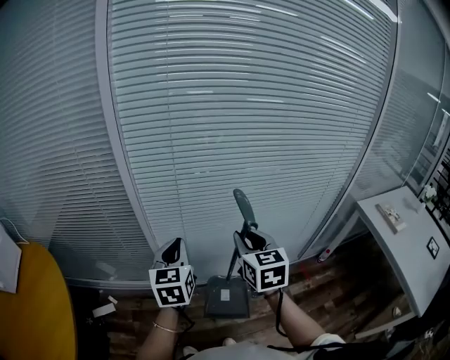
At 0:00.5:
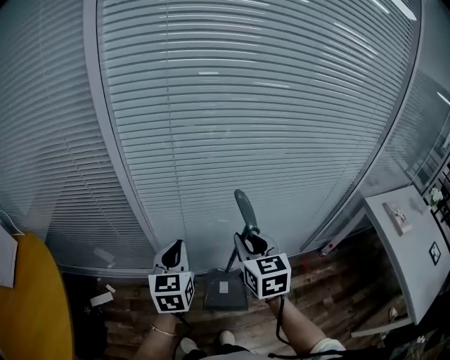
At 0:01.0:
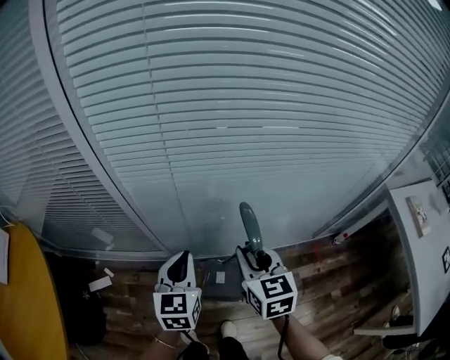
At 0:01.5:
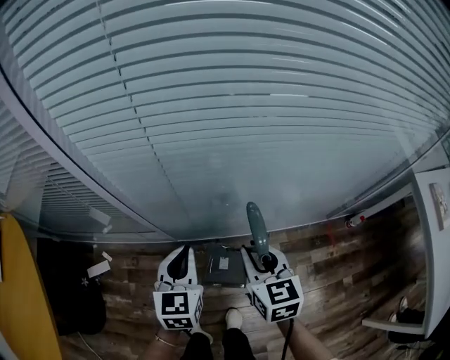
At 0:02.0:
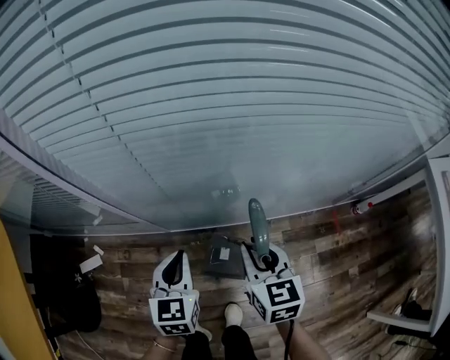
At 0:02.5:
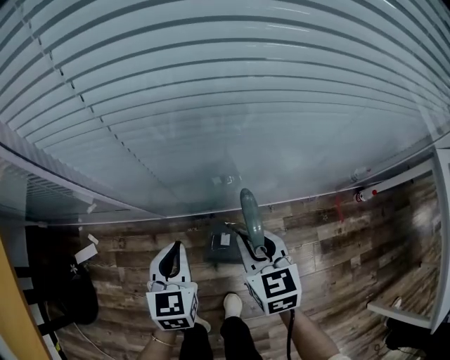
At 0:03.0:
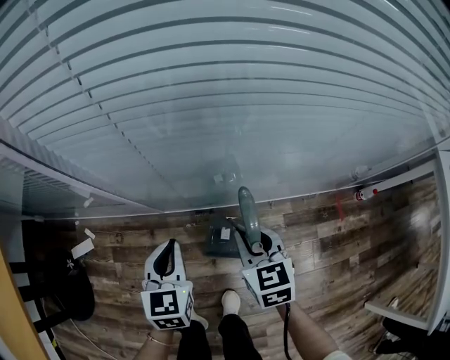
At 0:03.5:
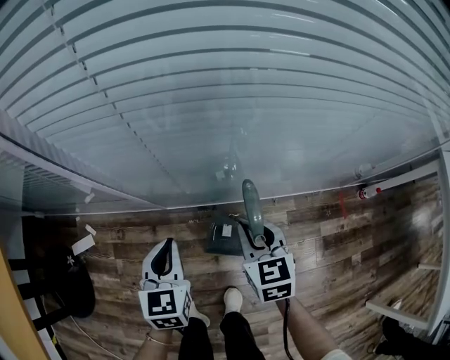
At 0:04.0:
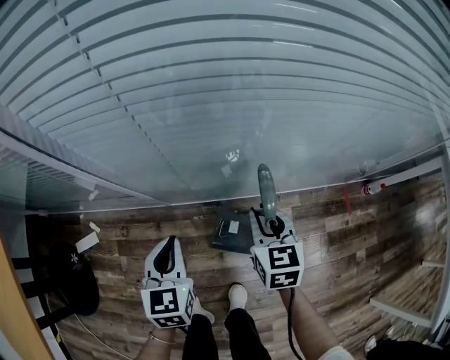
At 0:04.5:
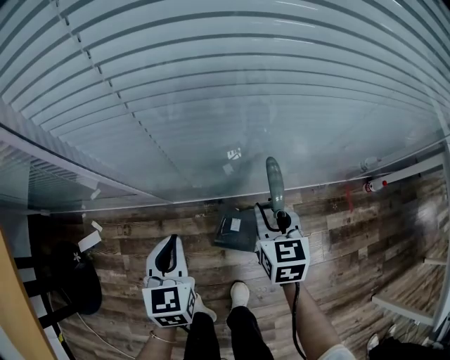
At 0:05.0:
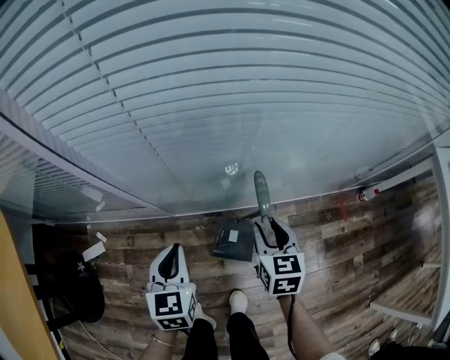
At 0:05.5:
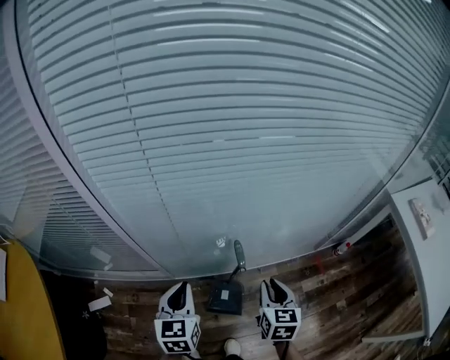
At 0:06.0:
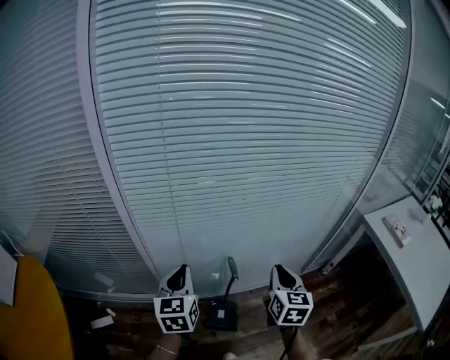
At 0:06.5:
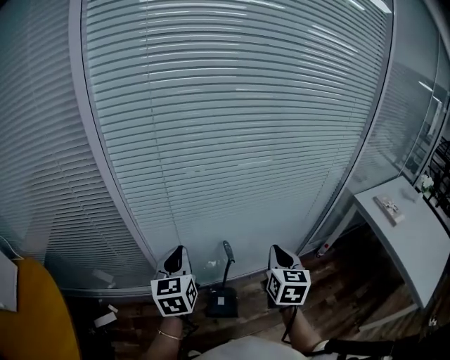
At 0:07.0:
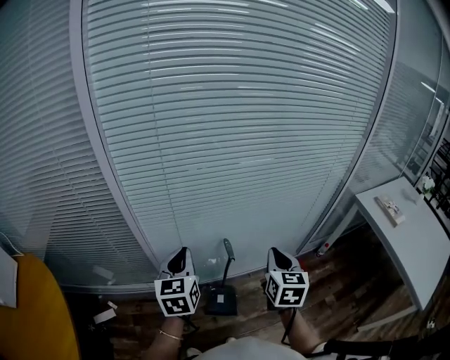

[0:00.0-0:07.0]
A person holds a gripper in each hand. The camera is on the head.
0:00.0 to 0:02.0: Both grippers move downward, roughly 35 cm.
0:02.0 to 0:03.5: The left gripper travels downward by roughly 5 cm, while the right gripper heads downward, covering some 10 cm.
0:03.5 to 0:05.0: The right gripper travels to the right by approximately 5 cm.
0:05.0 to 0:07.0: The two grippers go about 30 cm upward. The left gripper turns by some 20 degrees, while the right gripper swivels some 20 degrees, and closes.

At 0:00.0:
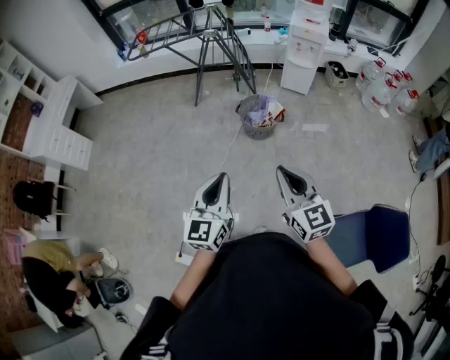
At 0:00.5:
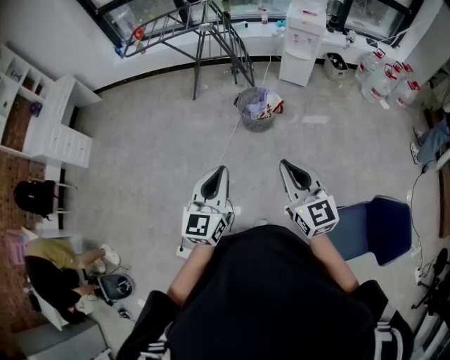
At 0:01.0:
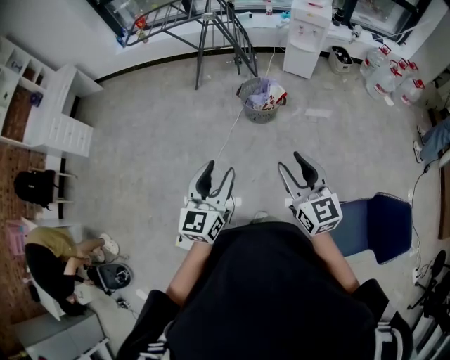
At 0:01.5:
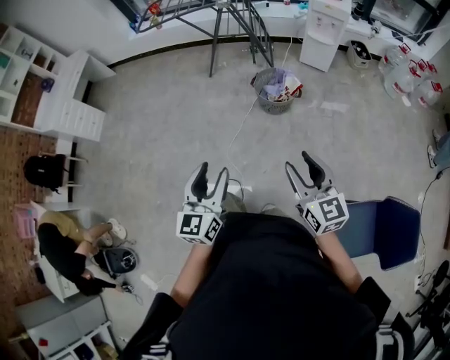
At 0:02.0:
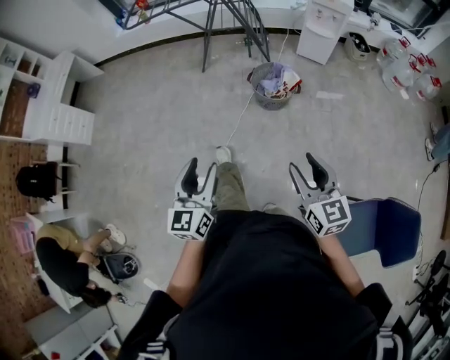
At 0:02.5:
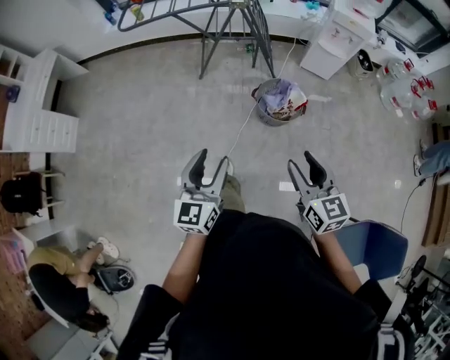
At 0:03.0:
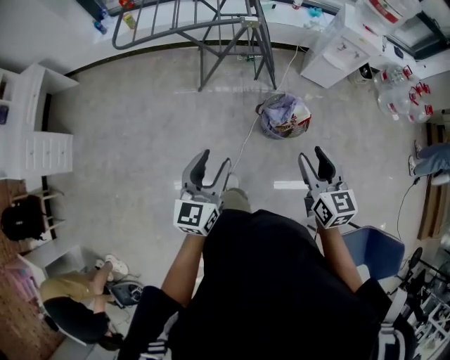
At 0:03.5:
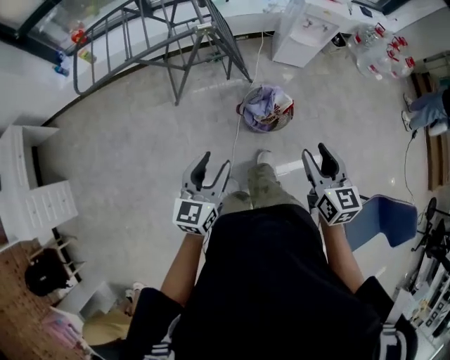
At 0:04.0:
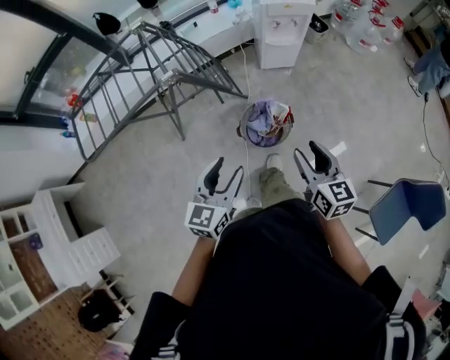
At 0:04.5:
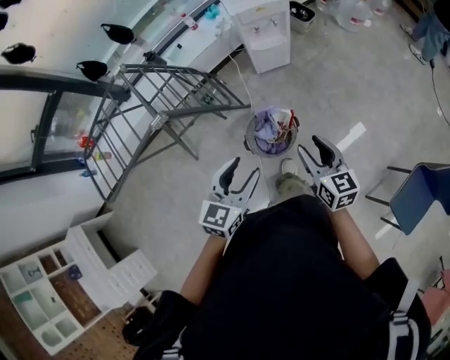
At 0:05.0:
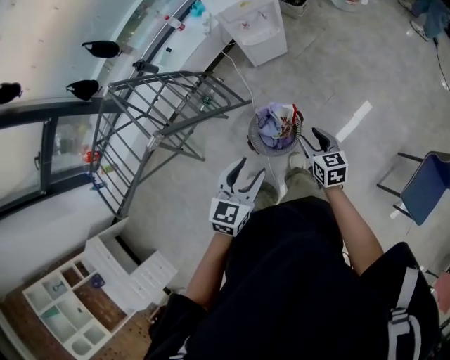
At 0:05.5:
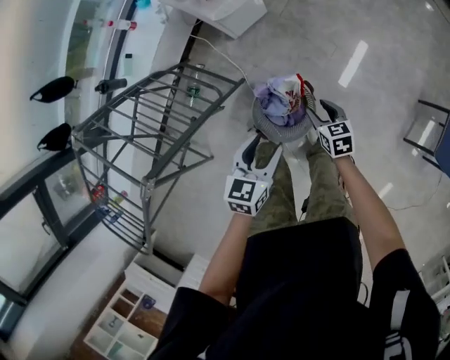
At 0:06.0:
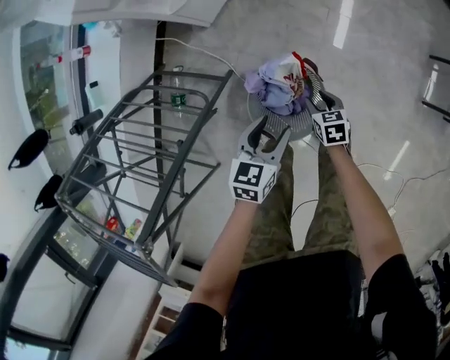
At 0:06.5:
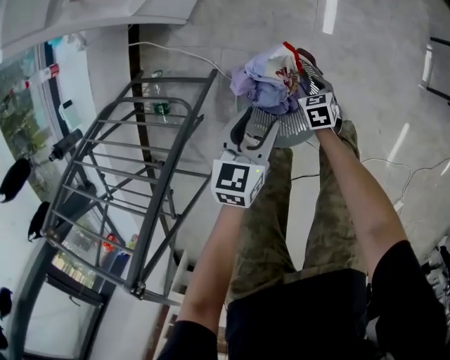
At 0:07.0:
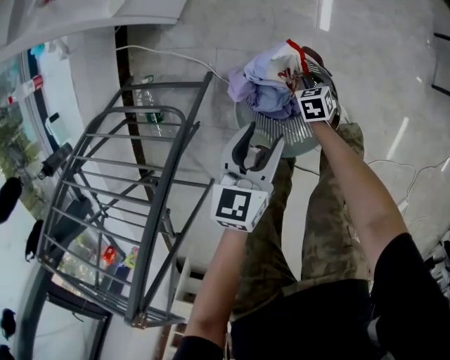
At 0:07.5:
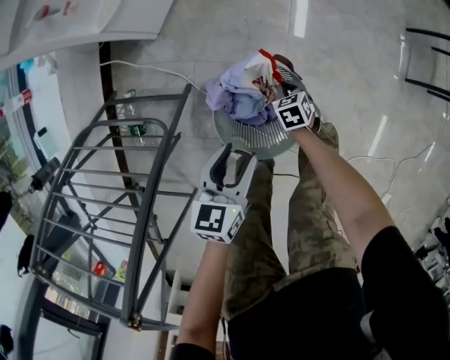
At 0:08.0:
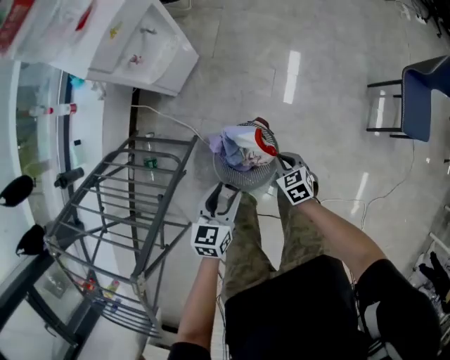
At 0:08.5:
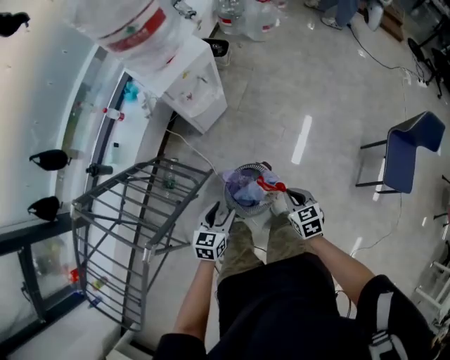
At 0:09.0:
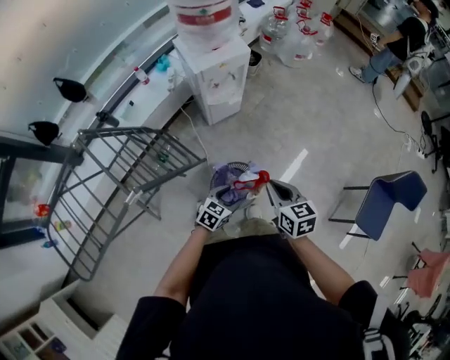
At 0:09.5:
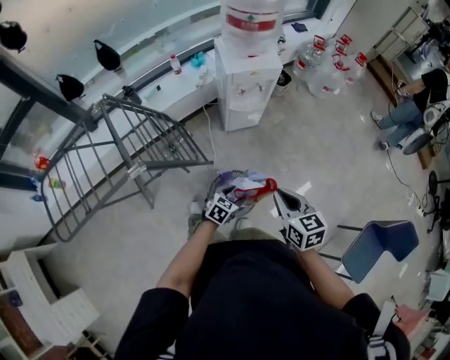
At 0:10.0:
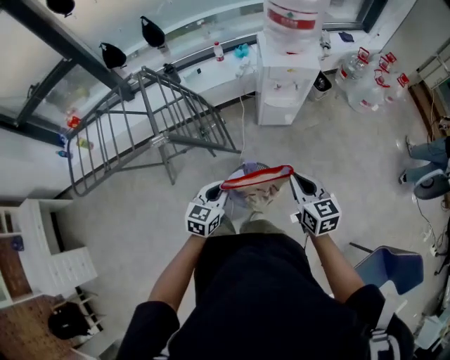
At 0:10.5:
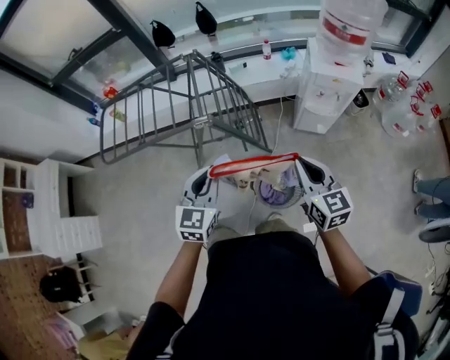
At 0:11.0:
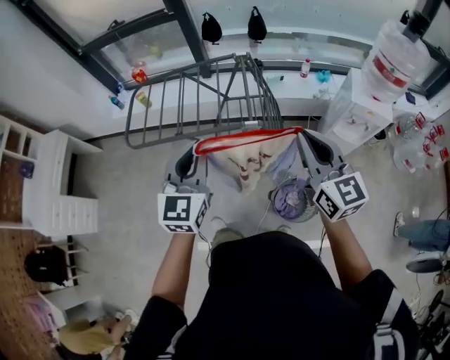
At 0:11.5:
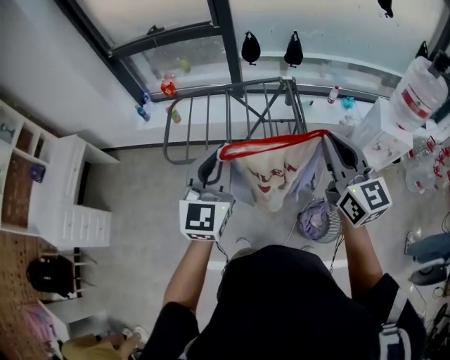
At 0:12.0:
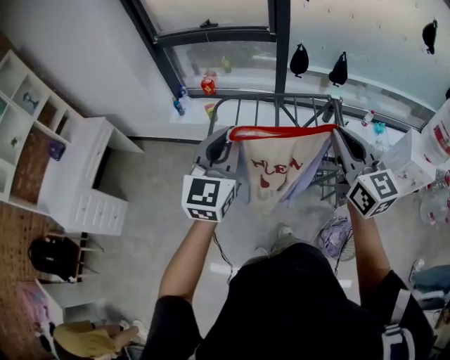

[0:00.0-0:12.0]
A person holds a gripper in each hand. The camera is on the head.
0:00.0 to 0:02.0: The left gripper shifts about 10 cm to the left, downward and forward, and opens; the right gripper goes about 10 cm downward, and opens up.
0:02.0 to 0:04.0: The two grippers travel together, about 50 cm. The left gripper changes its angle by approximately 40 degrees, while the right gripper changes its angle by about 30 degrees.
0:04.0 to 0:06.0: Both grippers move downward, about 50 cm. The left gripper rotates roughly 50 degrees, while the right gripper angles its fingers downward, by about 40 degrees.
0:06.0 to 0:08.0: Both grippers move upward, some 10 cm. The right gripper closes its fingers.
0:08.0 to 0:10.0: The right gripper heads upward, covering about 50 cm, and tips its fingers upward by approximately 30 degrees, while the left gripper goes some 25 cm upward, swivels about 50 degrees, and closes its fingers.
0:10.0 to 0:12.0: The pair of grippers is taken approximately 70 cm. The left gripper rotates roughly 50 degrees. The right gripper rotates roughly 40 degrees.

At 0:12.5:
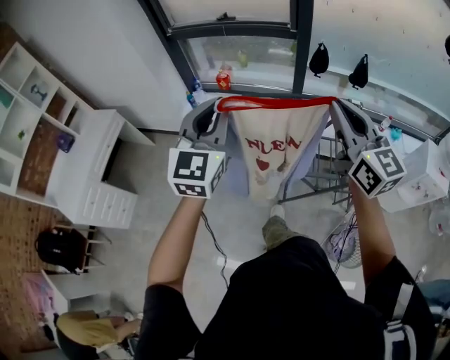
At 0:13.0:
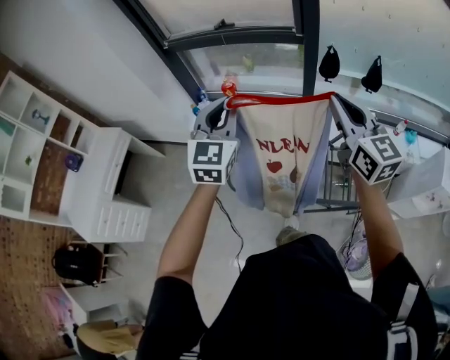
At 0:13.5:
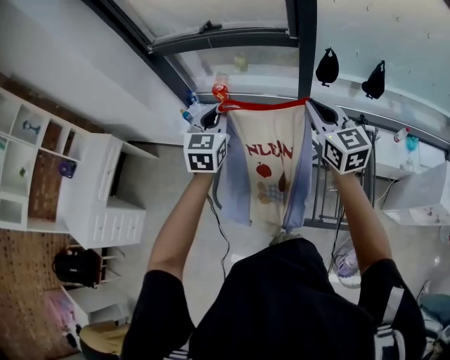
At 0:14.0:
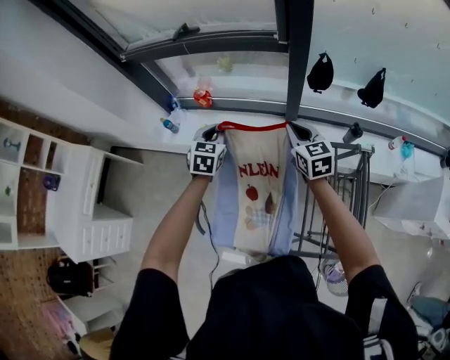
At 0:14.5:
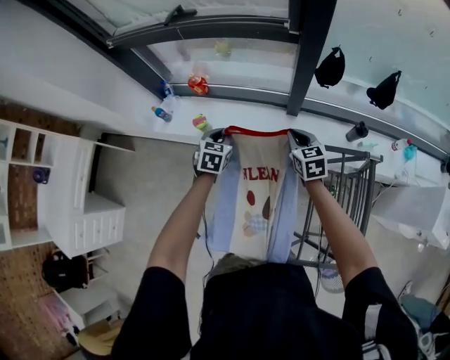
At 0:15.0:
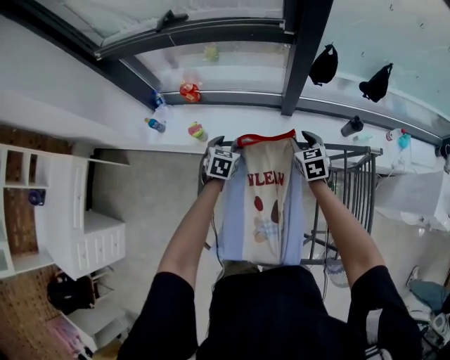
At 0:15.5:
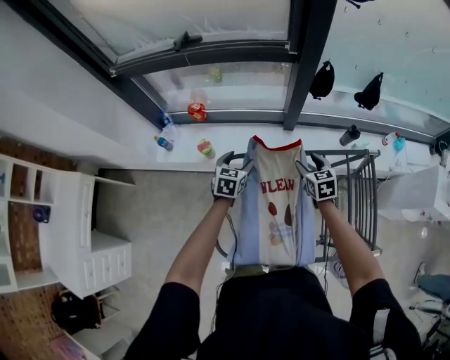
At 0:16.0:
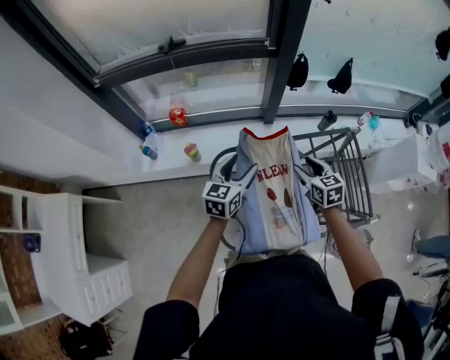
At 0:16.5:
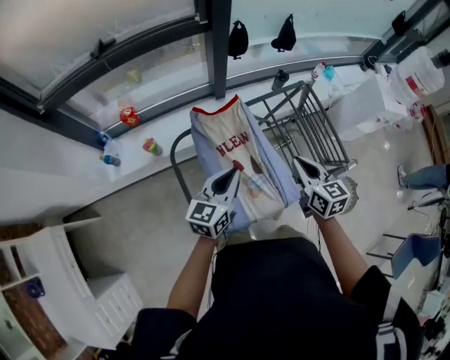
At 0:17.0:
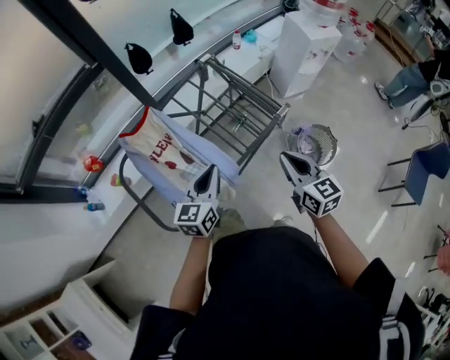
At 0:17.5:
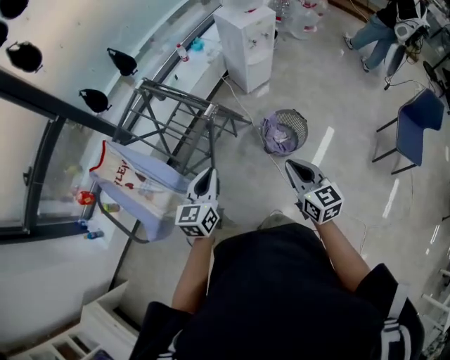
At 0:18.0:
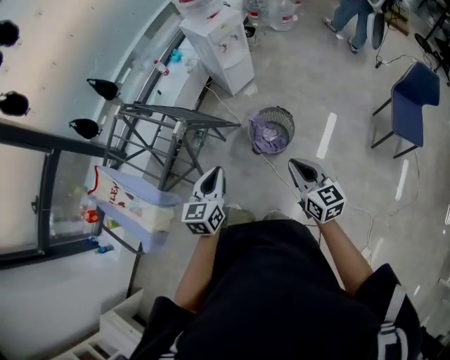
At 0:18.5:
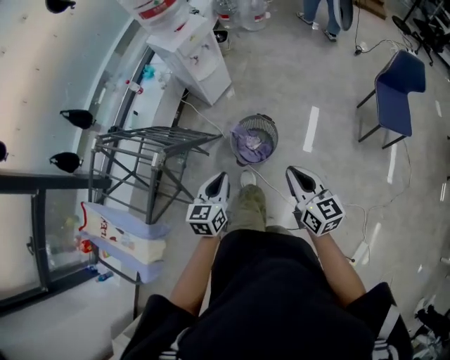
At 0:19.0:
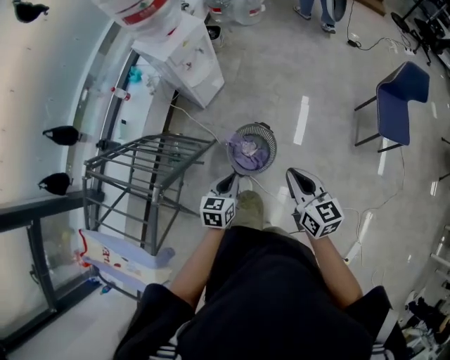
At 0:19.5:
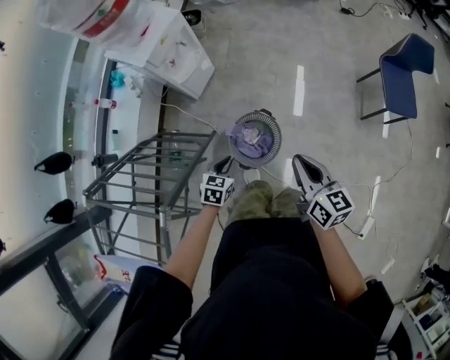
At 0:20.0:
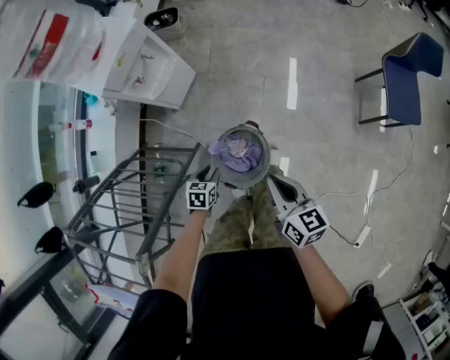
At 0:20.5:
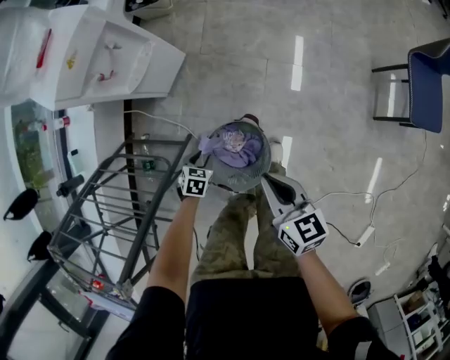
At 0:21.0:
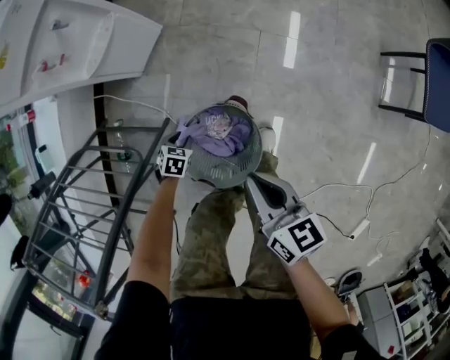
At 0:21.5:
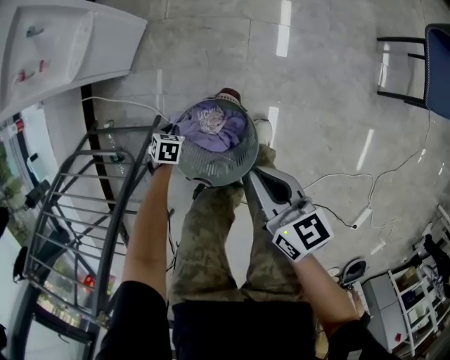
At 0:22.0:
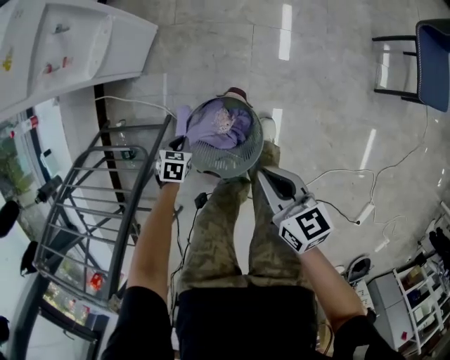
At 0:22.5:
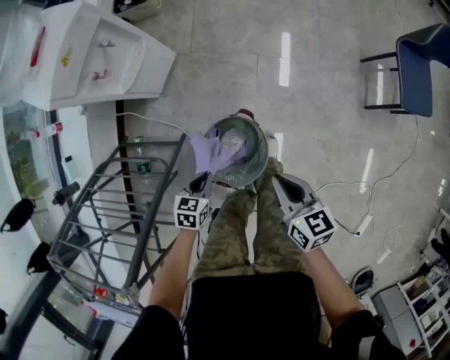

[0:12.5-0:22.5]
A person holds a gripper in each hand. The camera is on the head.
0:12.5 to 0:14.5: The two grippers travel together, forward, roughly 50 cm. Both grippers move downward, roughly 50 cm. The left gripper points its fingers about 50 degrees further downward, while the right gripper tilts its fingers some 40 degrees downward.
0:14.5 to 0:16.5: The left gripper changes place by roughly 30 cm, tilts its fingers approximately 30 degrees upward, and opens, then closes again. Meanwhile the right gripper moves roughly 35 cm, rotates approximately 30 degrees, and opens, then closes once more.
0:16.5 to 0:18.5: Both grippers are carried roughly 70 cm. The right gripper changes its angle by about 50 degrees; the left gripper rotates about 40 degrees.
0:18.5 to 0:20.5: The right gripper moves forward and downward, some 40 cm. The left gripper is displaced downward and forward by approximately 60 cm, tips its fingers downward by roughly 40 degrees, and opens up.
0:20.5 to 0:22.5: The right gripper moves some 10 cm downward and comes back. Meanwhile the left gripper travels upward by approximately 10 cm, and closes.
